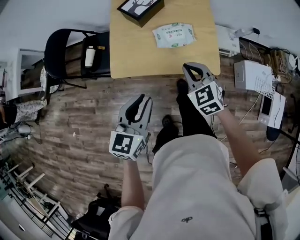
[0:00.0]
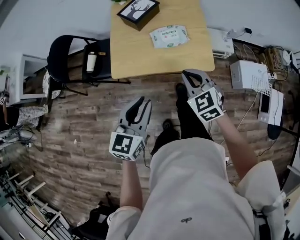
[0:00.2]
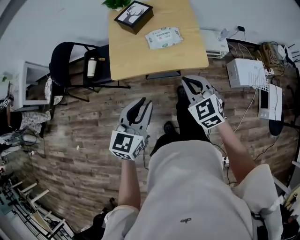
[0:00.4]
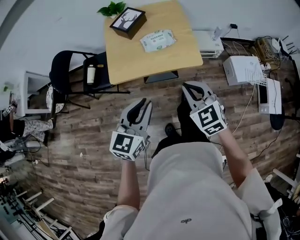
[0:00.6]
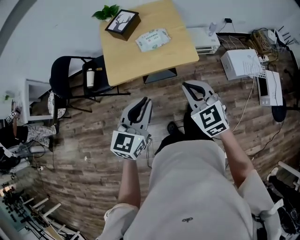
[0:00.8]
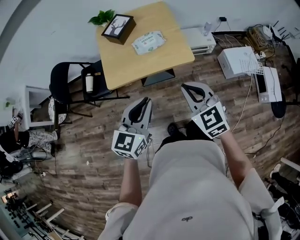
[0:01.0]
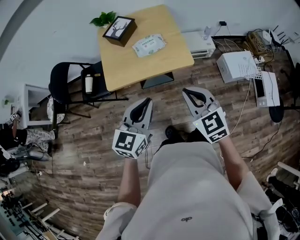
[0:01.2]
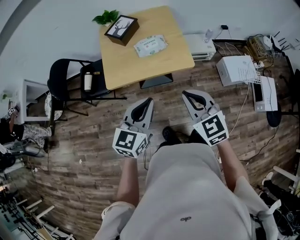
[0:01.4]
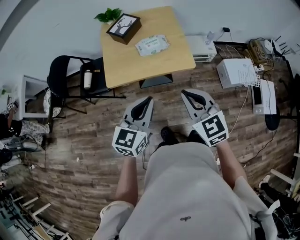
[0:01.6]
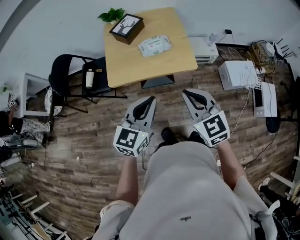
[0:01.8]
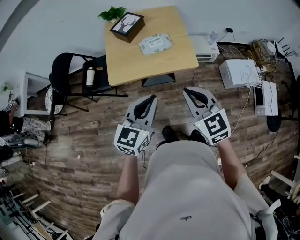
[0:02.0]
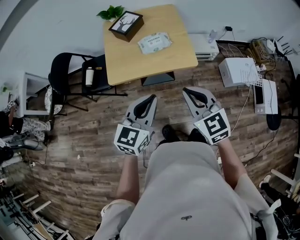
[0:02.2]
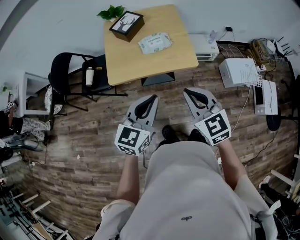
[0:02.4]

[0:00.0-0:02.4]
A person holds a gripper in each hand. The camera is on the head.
0:00.0 to 0:01.2: The left gripper shifts approximately 15 cm backward, to the right and upward, while the right gripper heads backward and upward, covering roughly 25 cm.
0:01.2 to 0:02.4: The grippers move only a little.

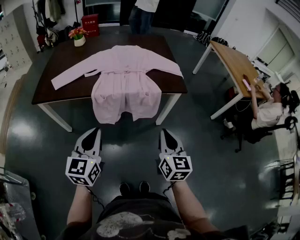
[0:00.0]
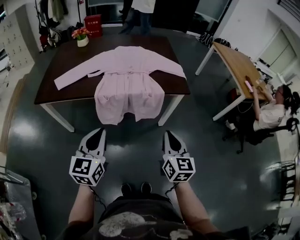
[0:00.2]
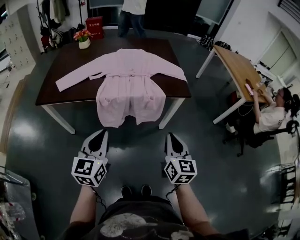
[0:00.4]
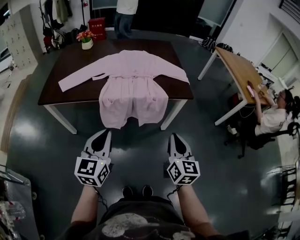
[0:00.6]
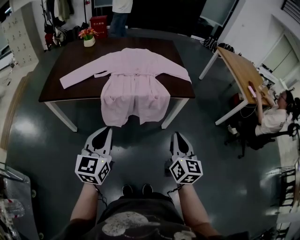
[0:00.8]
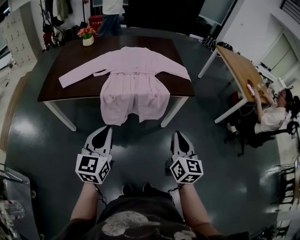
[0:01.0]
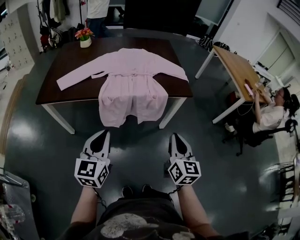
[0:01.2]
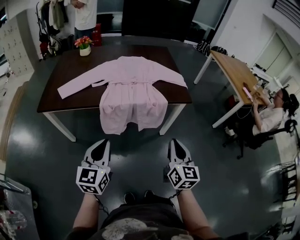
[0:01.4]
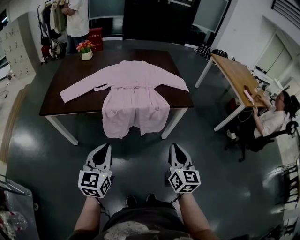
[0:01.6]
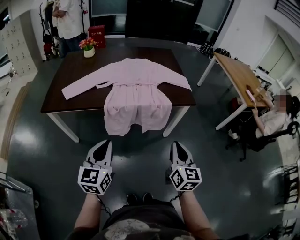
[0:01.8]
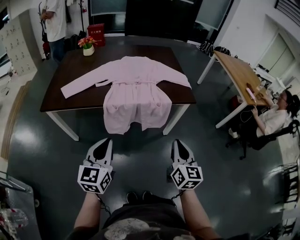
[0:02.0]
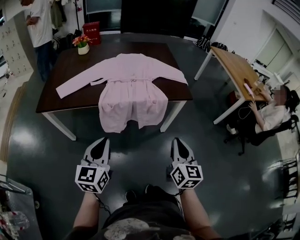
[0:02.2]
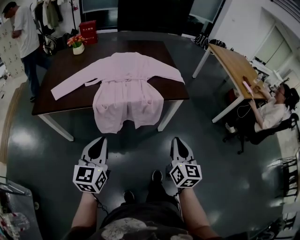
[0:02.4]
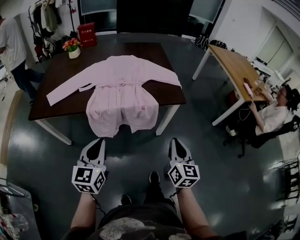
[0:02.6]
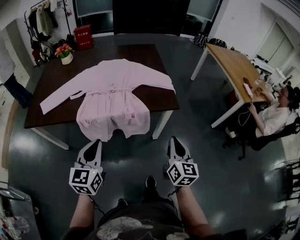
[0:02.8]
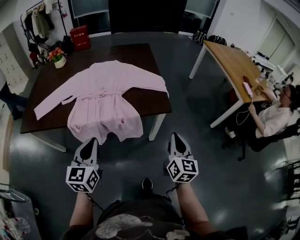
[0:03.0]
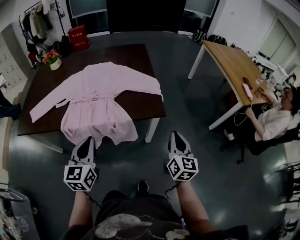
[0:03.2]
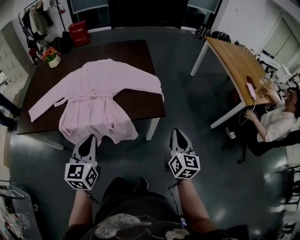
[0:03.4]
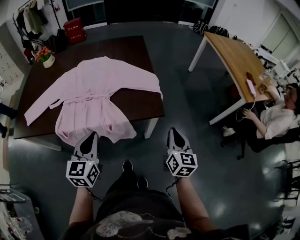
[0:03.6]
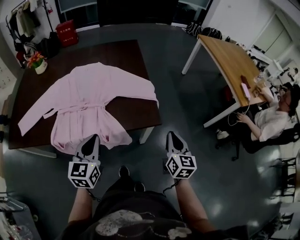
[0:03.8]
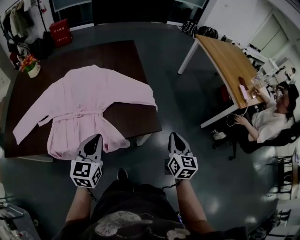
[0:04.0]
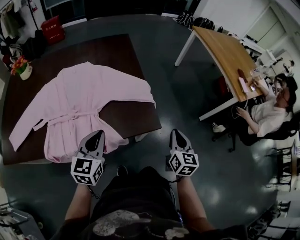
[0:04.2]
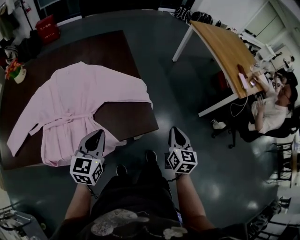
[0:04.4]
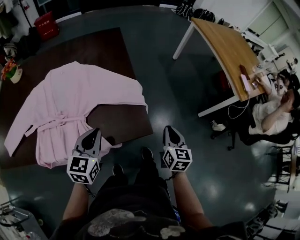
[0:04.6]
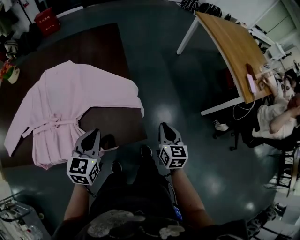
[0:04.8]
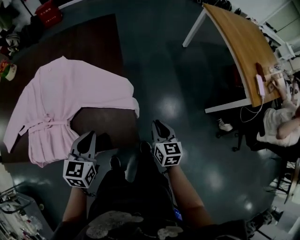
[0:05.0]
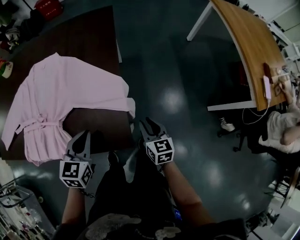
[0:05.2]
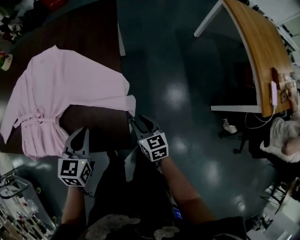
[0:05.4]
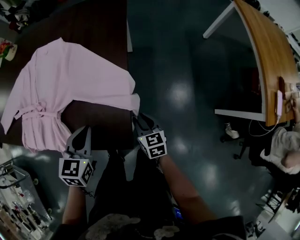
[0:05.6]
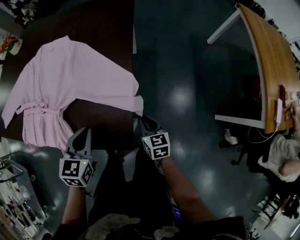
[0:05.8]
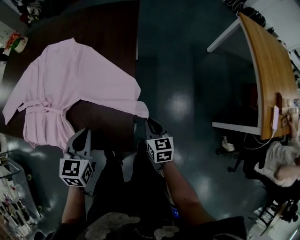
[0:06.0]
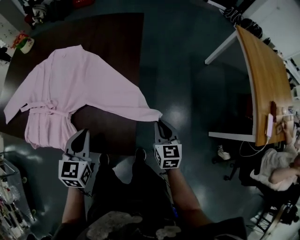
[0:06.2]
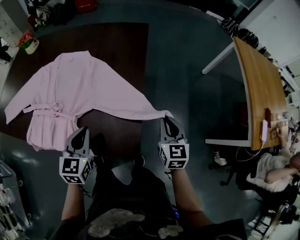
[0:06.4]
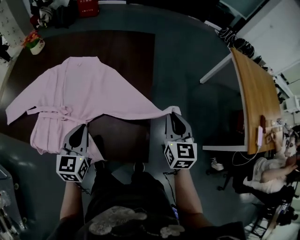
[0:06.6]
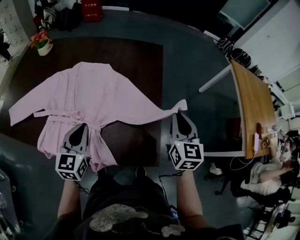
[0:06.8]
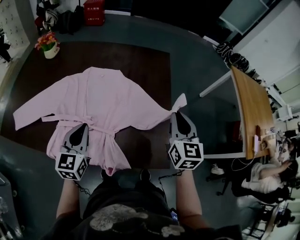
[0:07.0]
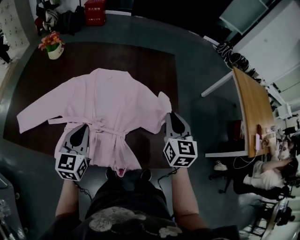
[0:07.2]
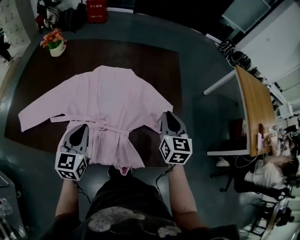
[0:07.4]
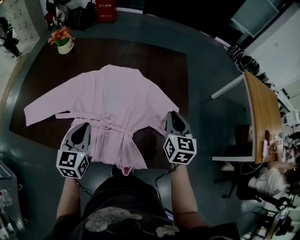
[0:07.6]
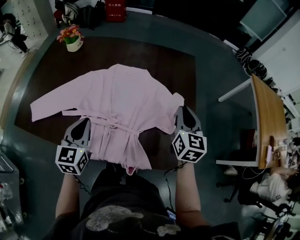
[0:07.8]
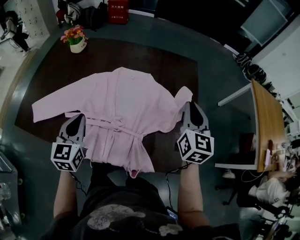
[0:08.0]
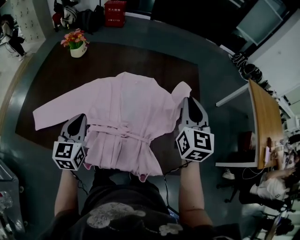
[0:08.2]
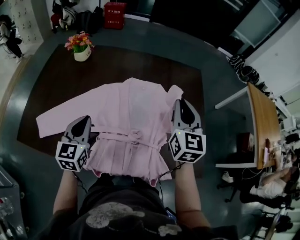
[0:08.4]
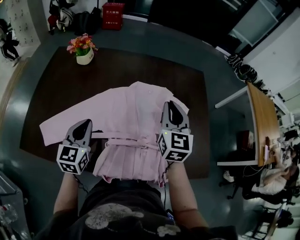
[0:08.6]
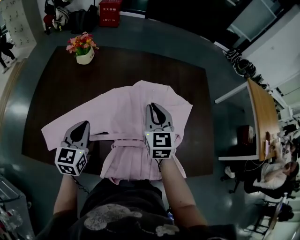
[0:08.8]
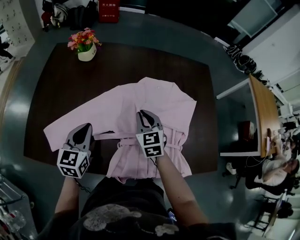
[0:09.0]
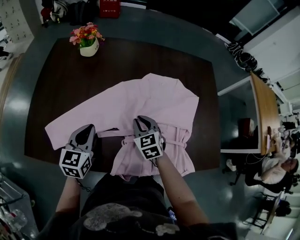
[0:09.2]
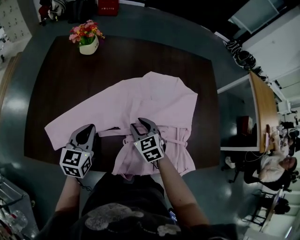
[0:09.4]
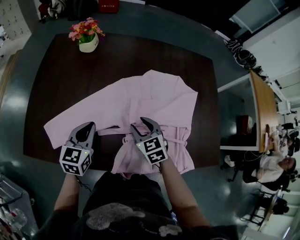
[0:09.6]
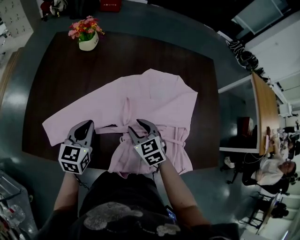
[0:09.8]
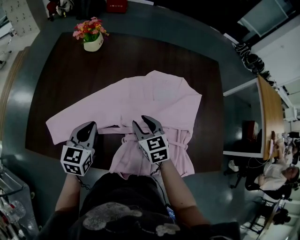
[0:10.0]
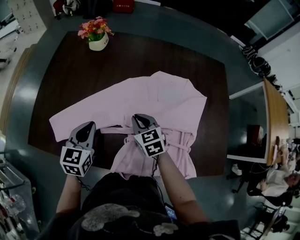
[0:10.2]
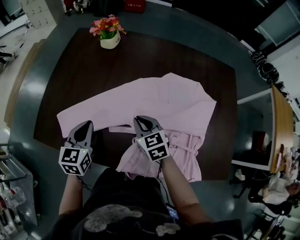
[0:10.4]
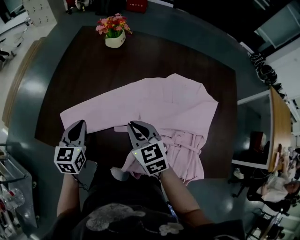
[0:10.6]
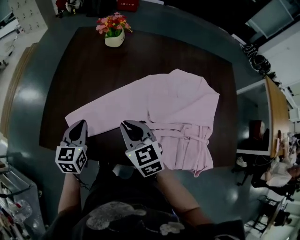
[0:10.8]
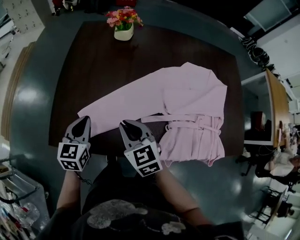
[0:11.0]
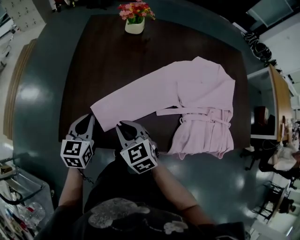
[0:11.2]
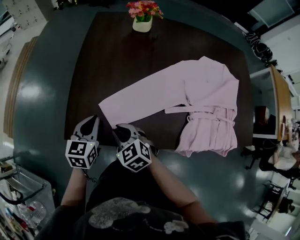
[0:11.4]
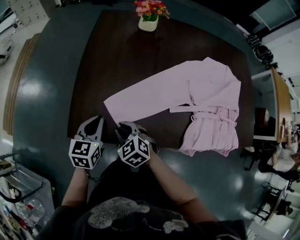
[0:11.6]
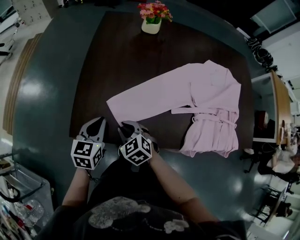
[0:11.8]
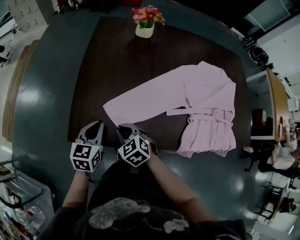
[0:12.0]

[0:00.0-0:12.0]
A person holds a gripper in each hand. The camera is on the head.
0:00.0 to 0:01.6: The grippers make only small movements.
0:01.6 to 0:03.0: The left gripper heads forward and to the right, covering about 25 cm. The right gripper travels to the right and forward by some 30 cm.
0:03.0 to 0:04.4: The right gripper travels forward and to the right by roughly 20 cm, while the left gripper heads forward, covering about 25 cm.
0:04.4 to 0:06.0: The right gripper is displaced downward by some 15 cm, swivels approximately 40 degrees, and opens, then closes once more, while the left gripper changes place by roughly 15 cm, and swivels approximately 30 degrees.
0:06.0 to 0:07.6: The left gripper moves to the left, roughly 30 cm, while the right gripper heads upward, to the left and forward, covering about 35 cm, and turns by approximately 20 degrees.
0:07.6 to 0:09.0: Both grippers move to the left, roughly 30 cm. The right gripper turns by approximately 20 degrees.
0:09.0 to 0:10.4: Both grippers travel together to the left, about 10 cm. The right gripper rotates about 20 degrees, and opens, then closes again.
0:10.4 to 0:12.0: The grippers both shift to the left by about 30 cm.

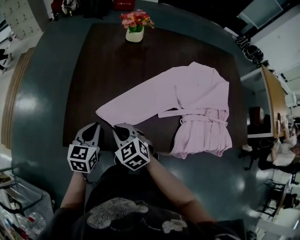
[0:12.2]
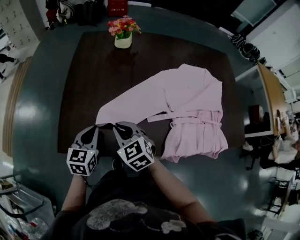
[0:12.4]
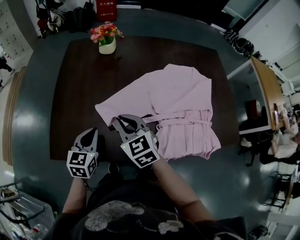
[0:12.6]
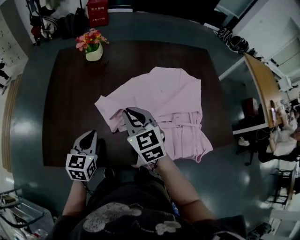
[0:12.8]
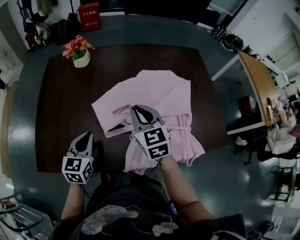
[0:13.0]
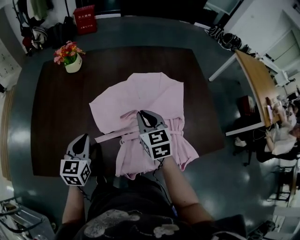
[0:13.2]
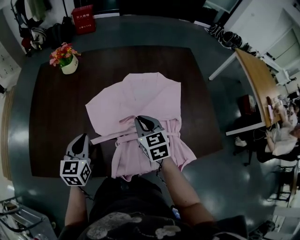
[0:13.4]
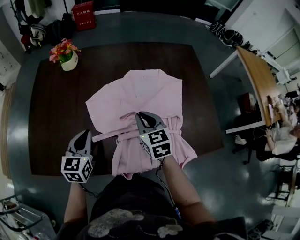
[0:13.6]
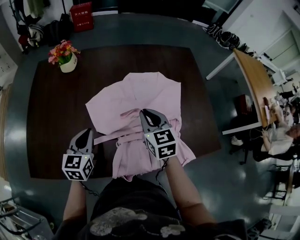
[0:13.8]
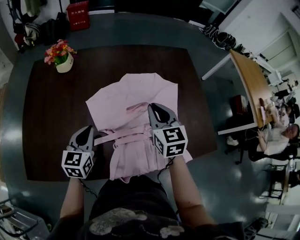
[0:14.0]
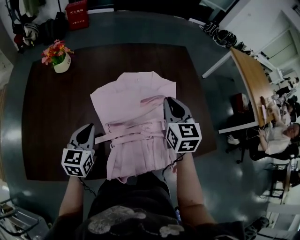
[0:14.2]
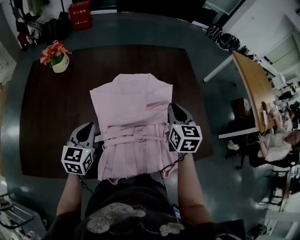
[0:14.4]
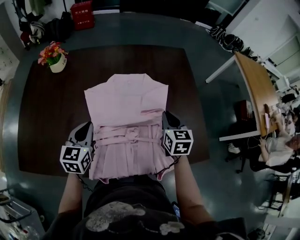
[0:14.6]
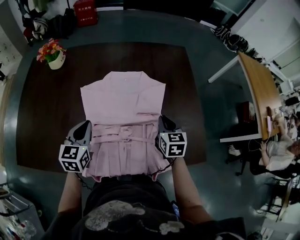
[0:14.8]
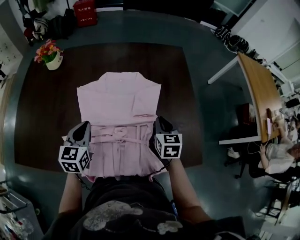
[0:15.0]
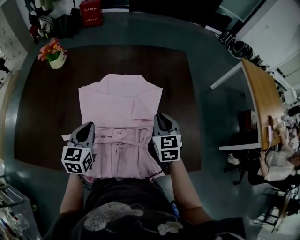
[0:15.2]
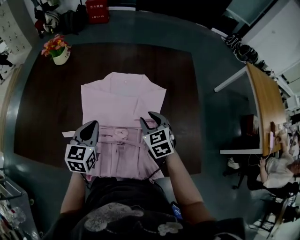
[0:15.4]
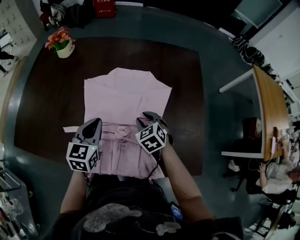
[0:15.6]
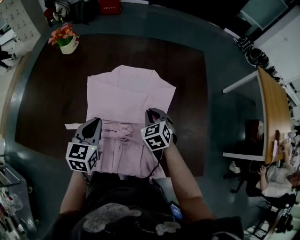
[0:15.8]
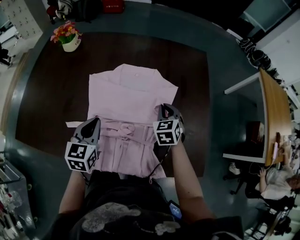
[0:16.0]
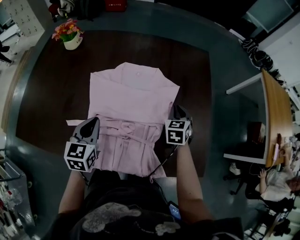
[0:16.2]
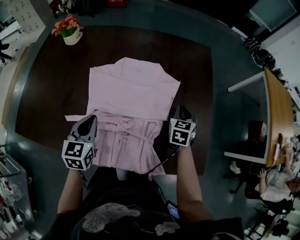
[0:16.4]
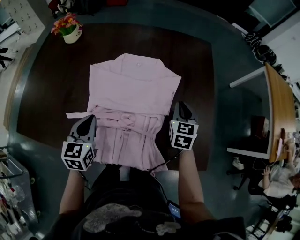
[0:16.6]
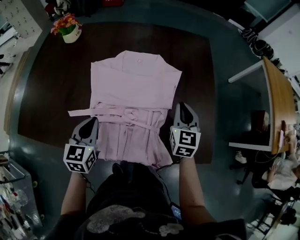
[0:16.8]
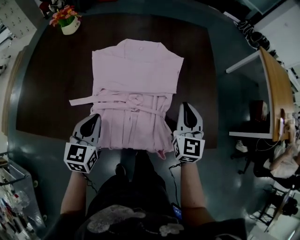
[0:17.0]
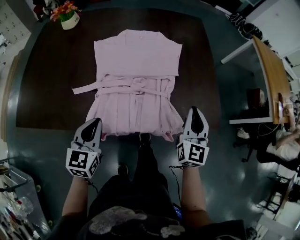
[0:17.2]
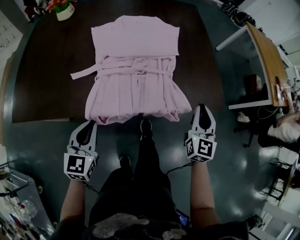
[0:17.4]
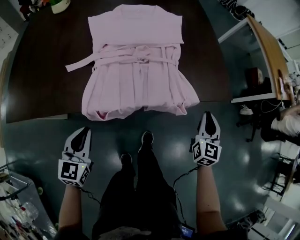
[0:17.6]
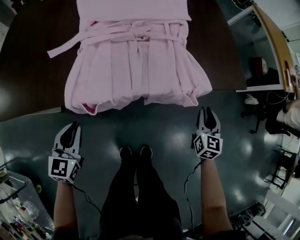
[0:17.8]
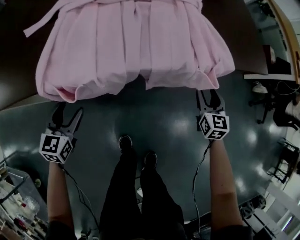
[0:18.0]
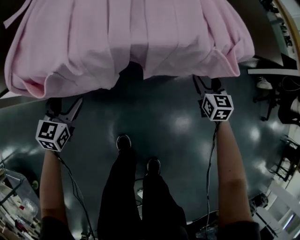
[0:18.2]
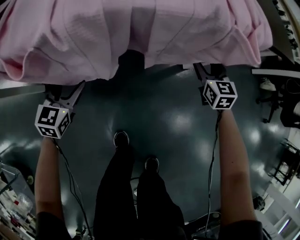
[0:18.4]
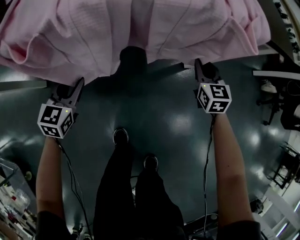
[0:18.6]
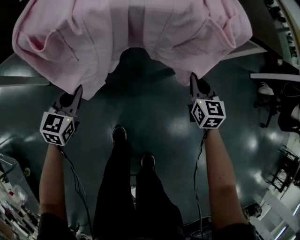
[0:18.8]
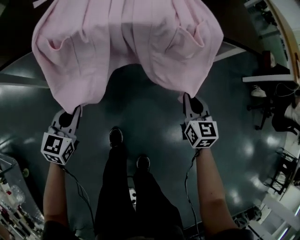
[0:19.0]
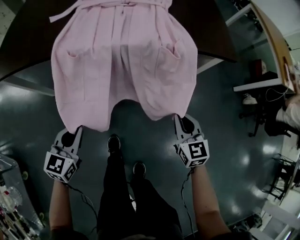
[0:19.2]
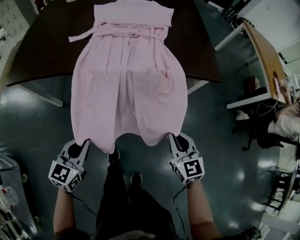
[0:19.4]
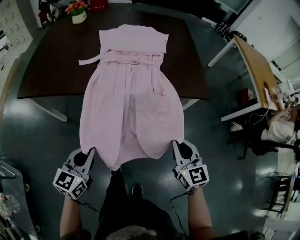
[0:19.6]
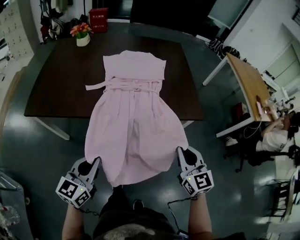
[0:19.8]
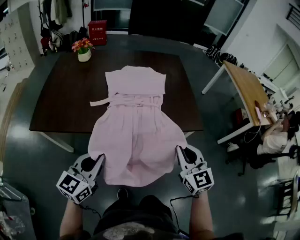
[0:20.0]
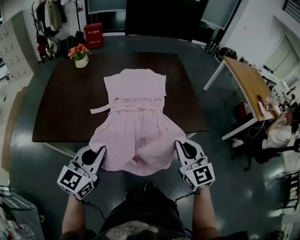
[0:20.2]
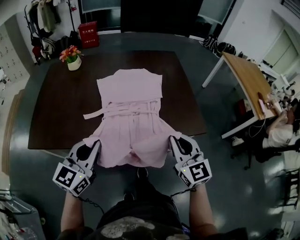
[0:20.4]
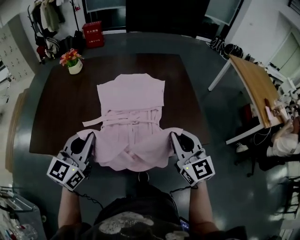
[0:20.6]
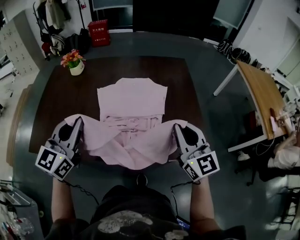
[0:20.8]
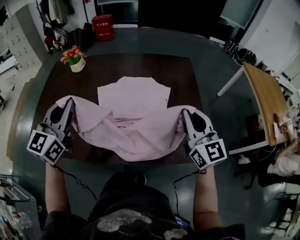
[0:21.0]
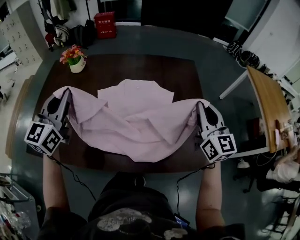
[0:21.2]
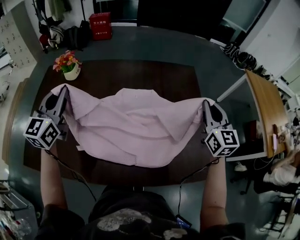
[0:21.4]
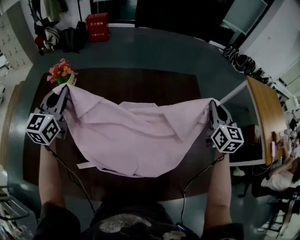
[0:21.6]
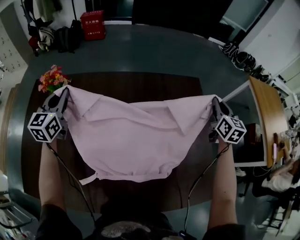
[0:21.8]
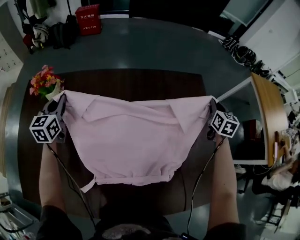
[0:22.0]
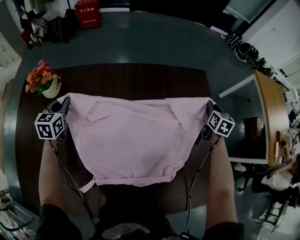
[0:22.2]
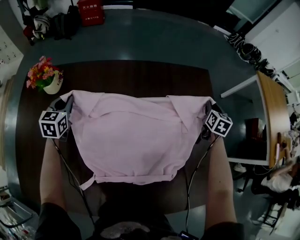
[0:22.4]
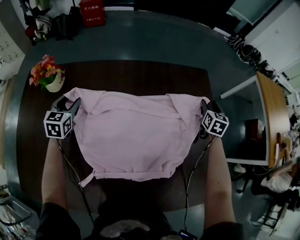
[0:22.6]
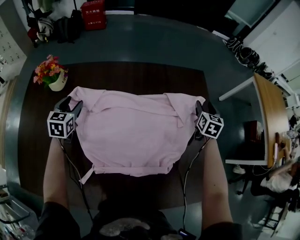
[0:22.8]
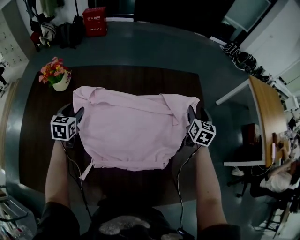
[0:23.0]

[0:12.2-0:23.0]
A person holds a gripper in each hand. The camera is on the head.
0:12.2 to 0:13.8: The right gripper shifts some 50 cm to the right, and changes its angle by approximately 30 degrees. The left gripper goes about 30 cm to the right.
0:13.8 to 0:15.2: The two grippers go some 20 cm to the right.
0:15.2 to 0:16.8: The right gripper goes to the left and returns, approximately 10 cm each way, and opens, then closes again. The left gripper heads backward, covering approximately 5 cm.
0:16.8 to 0:18.4: The grippers both shift downward and backward by approximately 50 cm. The right gripper opens up, while the left gripper rotates approximately 20 degrees, and opens.
0:18.4 to 0:20.0: Both grippers move upward, approximately 50 cm. The right gripper swivels roughly 20 degrees, and closes its fingers, while the left gripper changes its angle by about 30 degrees, and closes.
0:20.0 to 0:21.4: The two grippers travel together, forward, approximately 50 cm. The left gripper swivels some 30 degrees.
0:21.4 to 0:23.0: The two grippers go approximately 25 cm downward and forward. The right gripper swivels about 30 degrees, and opens its fingers. Meanwhile the left gripper tips its fingers downward by approximately 30 degrees, and opens its fingers.
